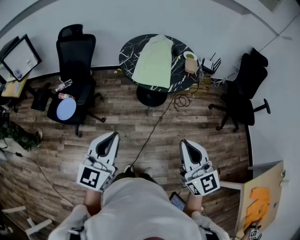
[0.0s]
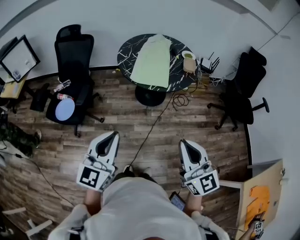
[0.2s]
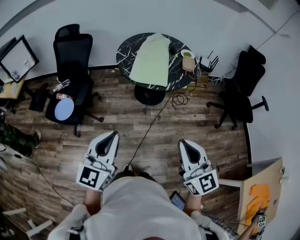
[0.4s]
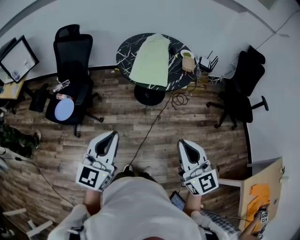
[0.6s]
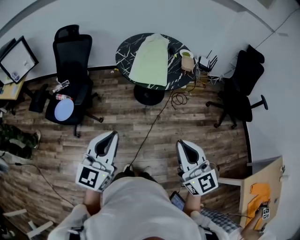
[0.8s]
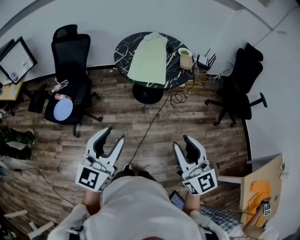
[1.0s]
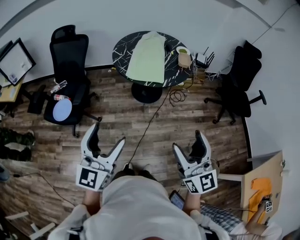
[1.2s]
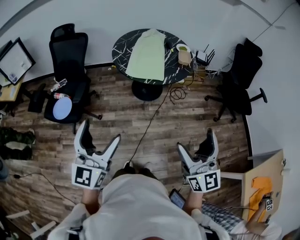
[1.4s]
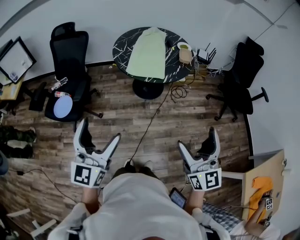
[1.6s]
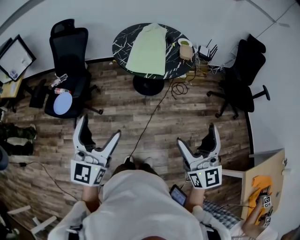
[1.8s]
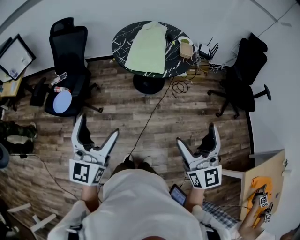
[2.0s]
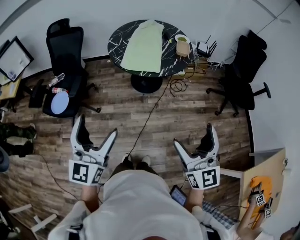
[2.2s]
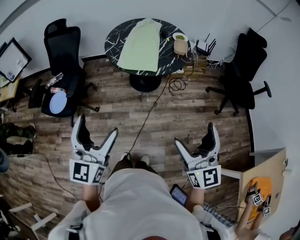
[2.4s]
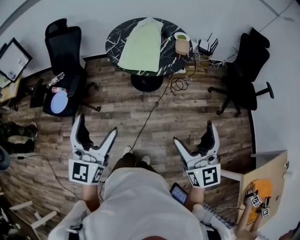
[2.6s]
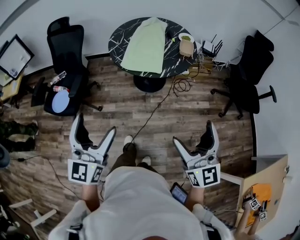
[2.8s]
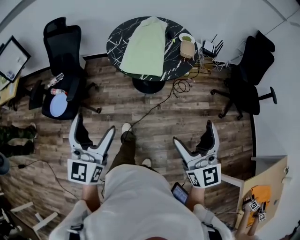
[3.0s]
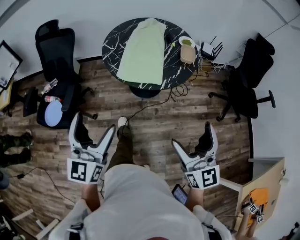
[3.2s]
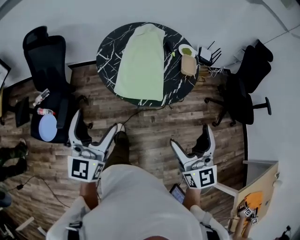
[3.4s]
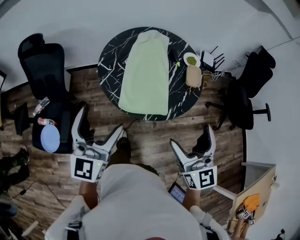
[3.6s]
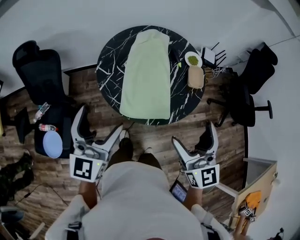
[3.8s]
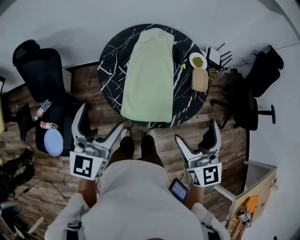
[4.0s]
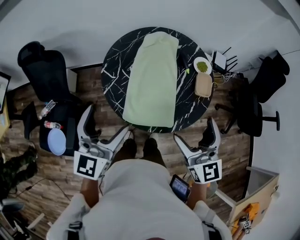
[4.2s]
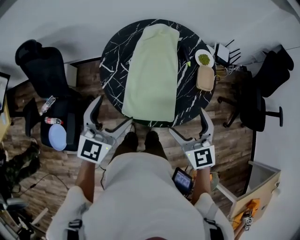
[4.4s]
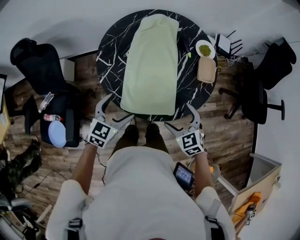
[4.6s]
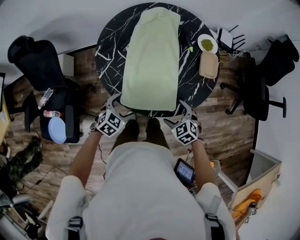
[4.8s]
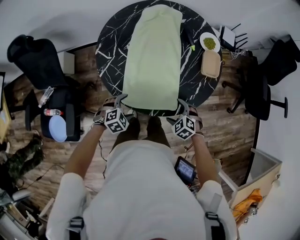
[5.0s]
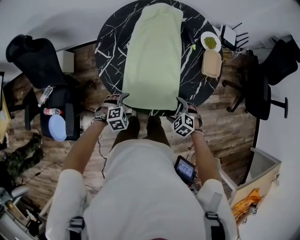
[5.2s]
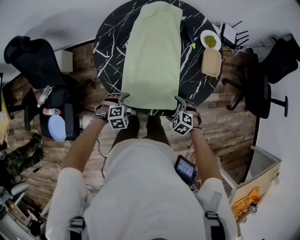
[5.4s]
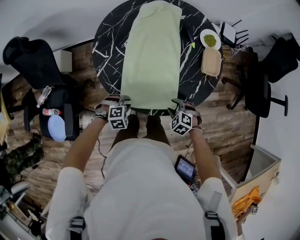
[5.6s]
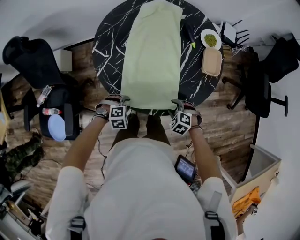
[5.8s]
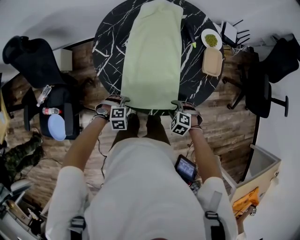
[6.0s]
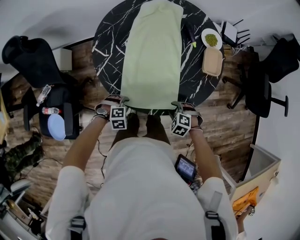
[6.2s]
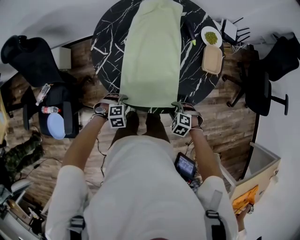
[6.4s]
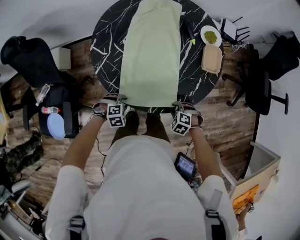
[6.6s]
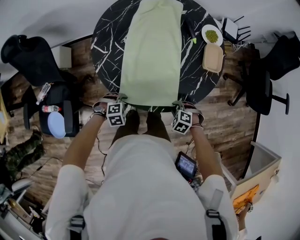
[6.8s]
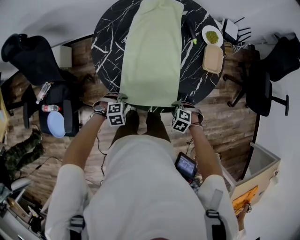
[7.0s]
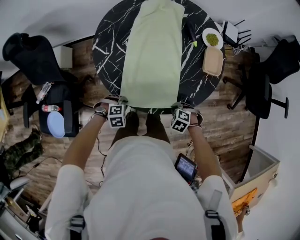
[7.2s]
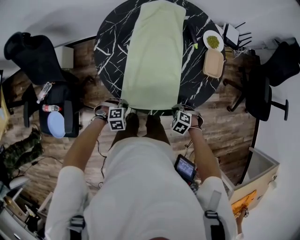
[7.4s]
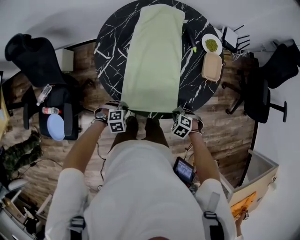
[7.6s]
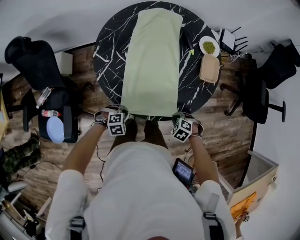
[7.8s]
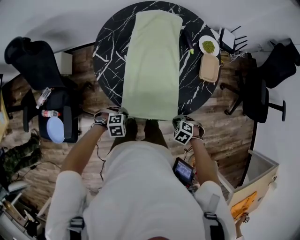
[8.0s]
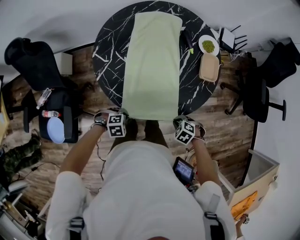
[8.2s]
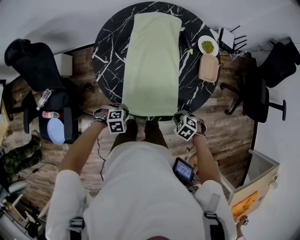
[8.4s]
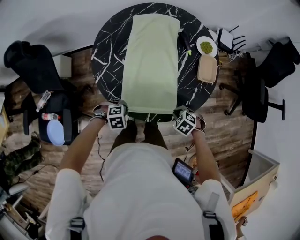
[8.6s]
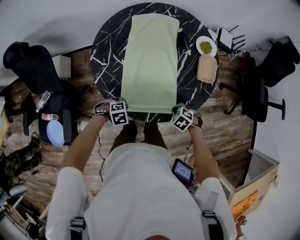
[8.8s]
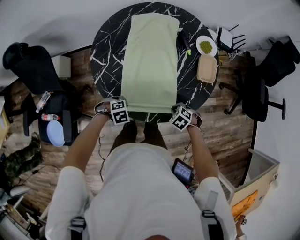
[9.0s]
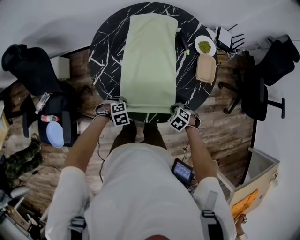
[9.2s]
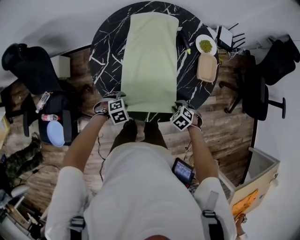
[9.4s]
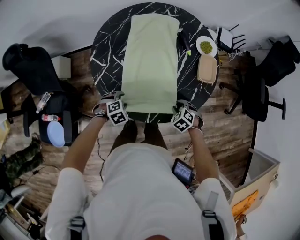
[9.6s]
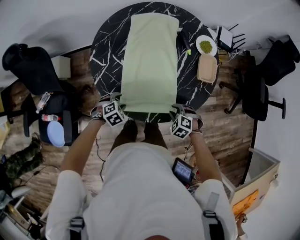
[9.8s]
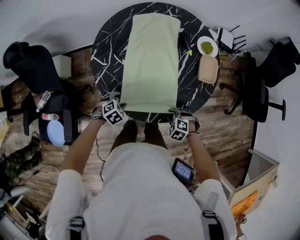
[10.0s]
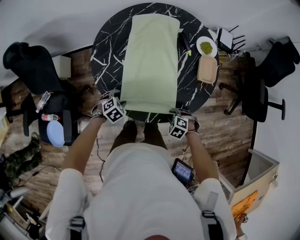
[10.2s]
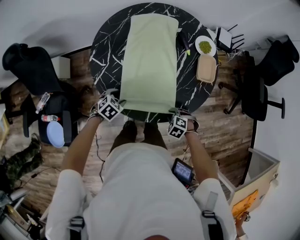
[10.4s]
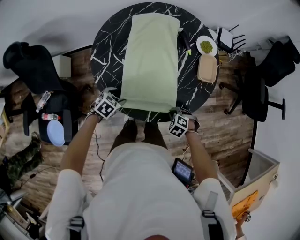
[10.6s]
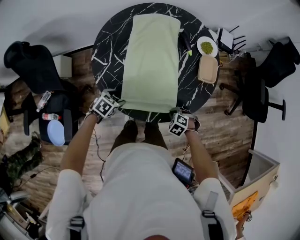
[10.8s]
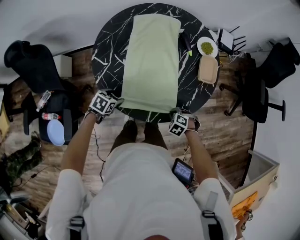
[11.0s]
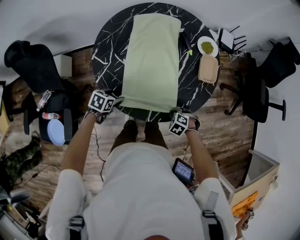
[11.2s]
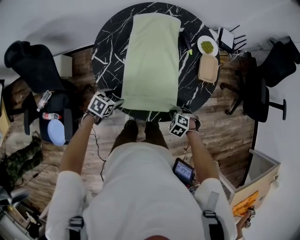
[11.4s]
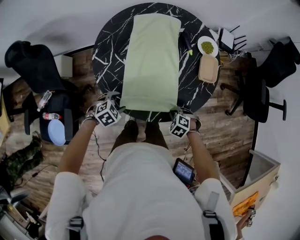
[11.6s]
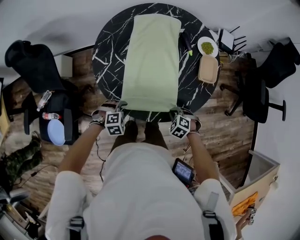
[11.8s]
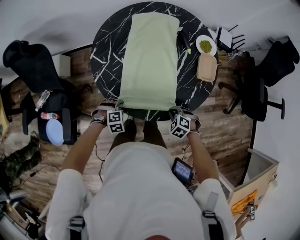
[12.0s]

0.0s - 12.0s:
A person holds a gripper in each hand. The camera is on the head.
0.0s - 1.6s: The right gripper goes some 5 cm to the right, and opens its fingers; the left gripper opens.
1.6s - 3.0s: The right gripper shifts approximately 10 cm forward, while the left gripper goes about 10 cm forward and to the right.
3.0s - 4.4s: The two grippers travel together, forward, approximately 50 cm. The right gripper rotates some 30 degrees. Meanwhile the left gripper turns by approximately 30 degrees.
4.4s - 6.0s: Both grippers move downward, some 35 cm. The left gripper points its fingers roughly 60 degrees further downward, and closes up; the right gripper angles its fingers downward, by some 50 degrees, and closes.
6.0s - 7.6s: The right gripper closes up. Meanwhile the left gripper closes its fingers.
7.6s - 9.0s: The left gripper shifts by roughly 5 cm, while the right gripper changes place by approximately 5 cm.
9.0s - 10.4s: The left gripper ends up about 5 cm from where it was, rotates some 30 degrees, and opens.
10.4s - 12.0s: The left gripper ends up roughly 10 cm from where it was, and turns by roughly 40 degrees.

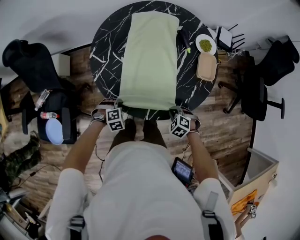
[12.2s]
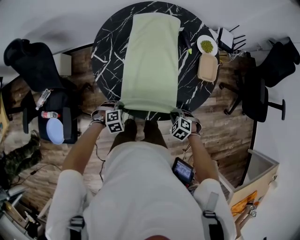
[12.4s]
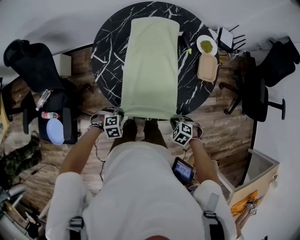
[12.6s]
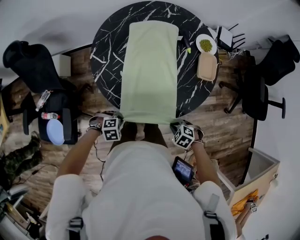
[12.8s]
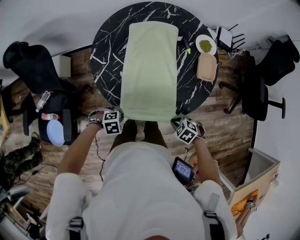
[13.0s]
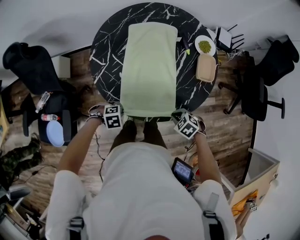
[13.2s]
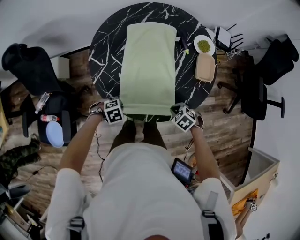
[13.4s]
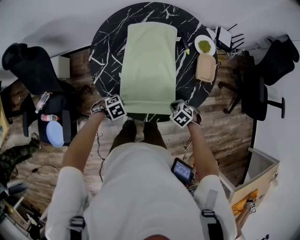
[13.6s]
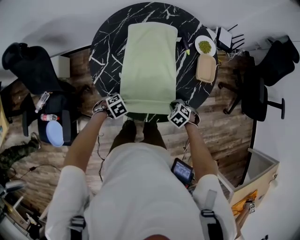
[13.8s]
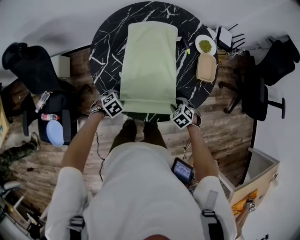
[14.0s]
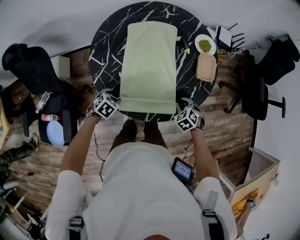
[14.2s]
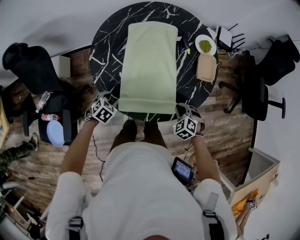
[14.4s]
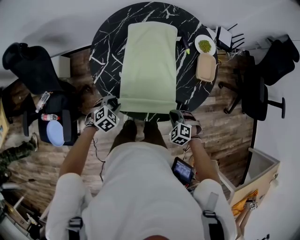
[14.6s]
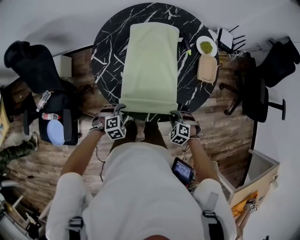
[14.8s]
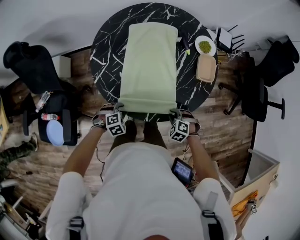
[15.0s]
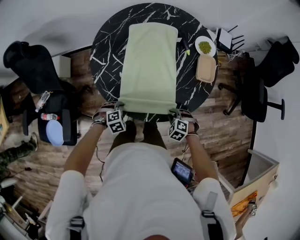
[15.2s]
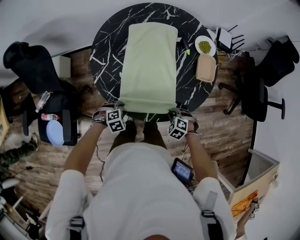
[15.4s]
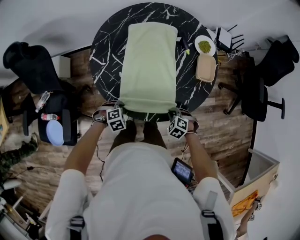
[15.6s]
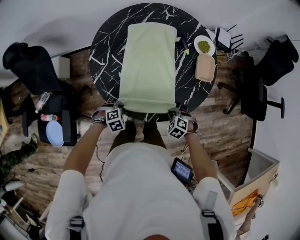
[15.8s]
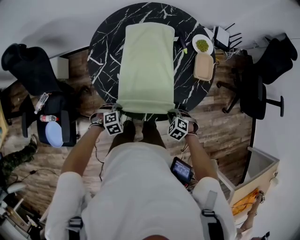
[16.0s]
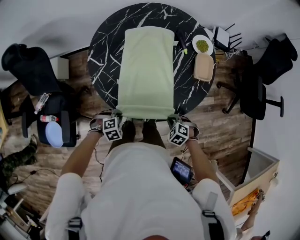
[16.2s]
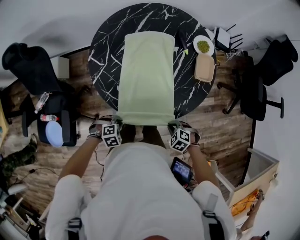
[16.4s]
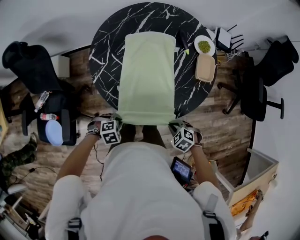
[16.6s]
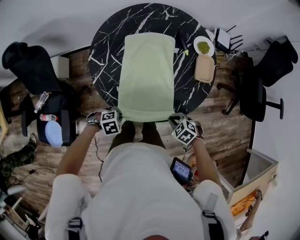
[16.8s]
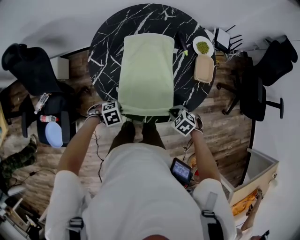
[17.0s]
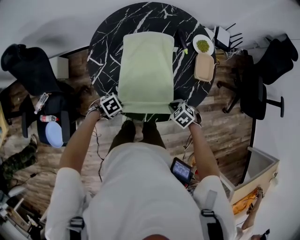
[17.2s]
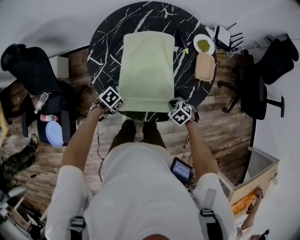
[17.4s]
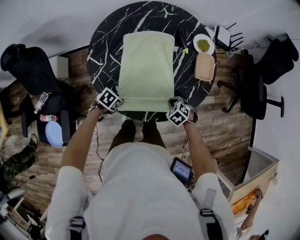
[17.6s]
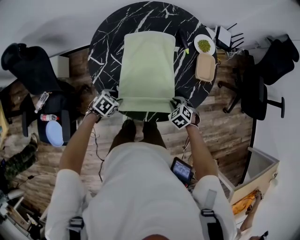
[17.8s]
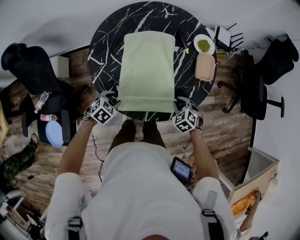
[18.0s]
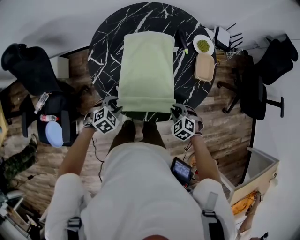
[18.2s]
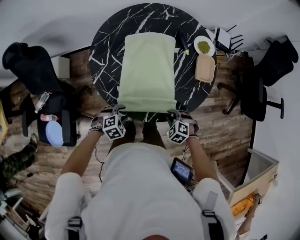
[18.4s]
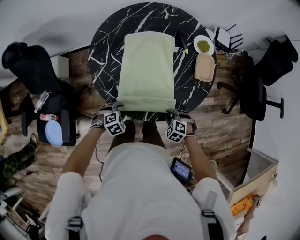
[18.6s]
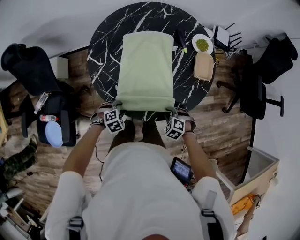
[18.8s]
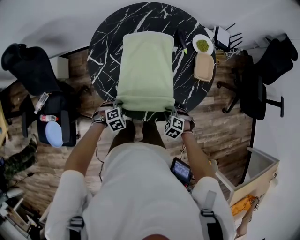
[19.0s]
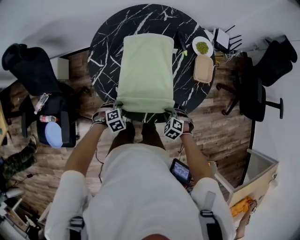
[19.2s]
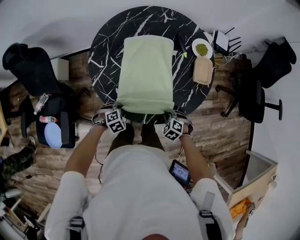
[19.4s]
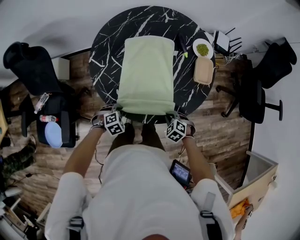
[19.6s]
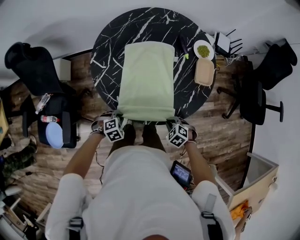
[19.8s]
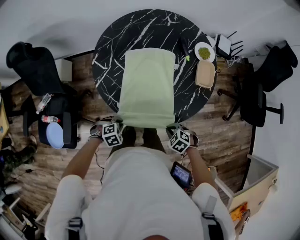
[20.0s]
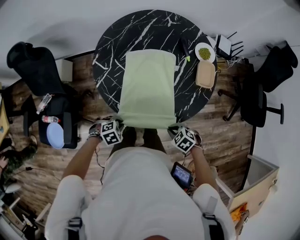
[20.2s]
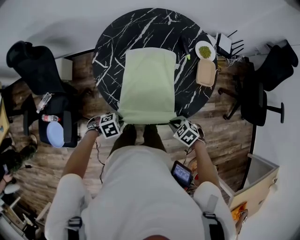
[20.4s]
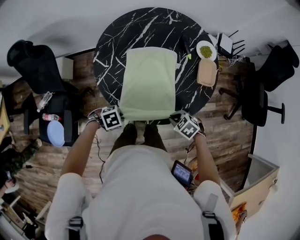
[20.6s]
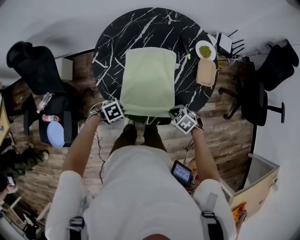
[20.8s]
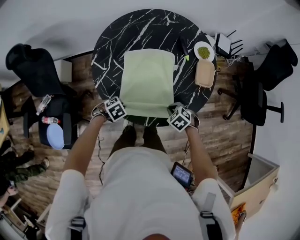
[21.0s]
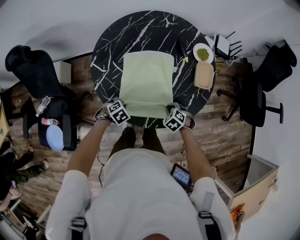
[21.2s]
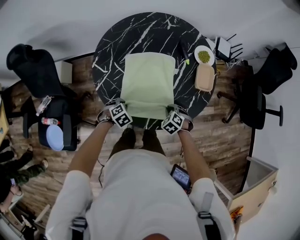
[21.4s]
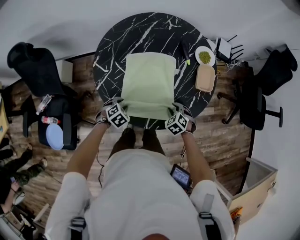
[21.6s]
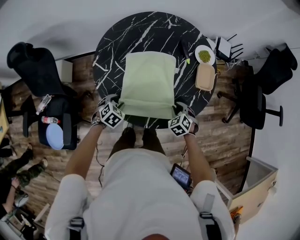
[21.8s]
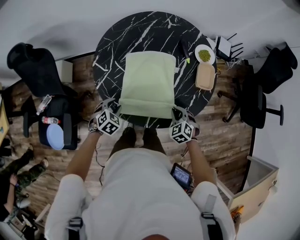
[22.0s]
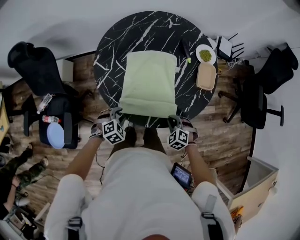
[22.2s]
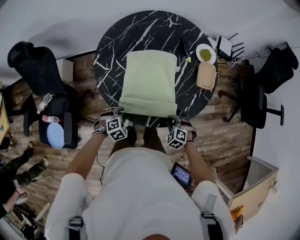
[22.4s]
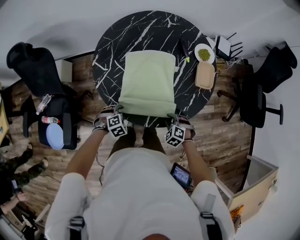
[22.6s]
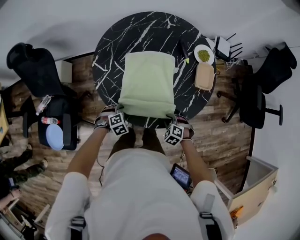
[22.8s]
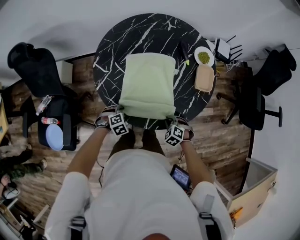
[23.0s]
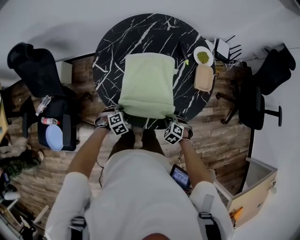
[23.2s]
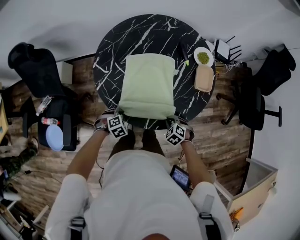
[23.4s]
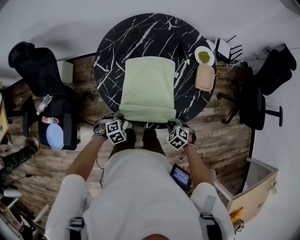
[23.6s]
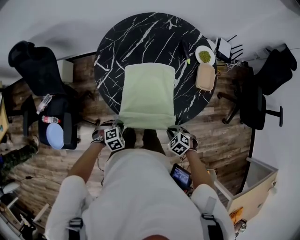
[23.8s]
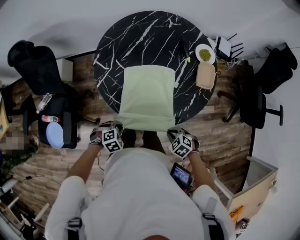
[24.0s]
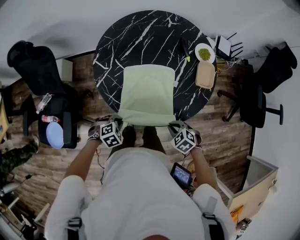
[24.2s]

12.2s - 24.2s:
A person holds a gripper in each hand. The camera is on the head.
12.2s - 13.8s: The left gripper swivels approximately 30 degrees.
13.8s - 15.2s: The right gripper ends up about 5 cm from where it was.
15.2s - 16.6s: The right gripper ends up some 5 cm from where it was. The left gripper ends up about 10 cm from where it was.
16.6s - 18.2s: The left gripper ends up about 10 cm from where it was, and rotates approximately 20 degrees. Meanwhile the right gripper ends up roughly 10 cm from where it was.
18.2s - 19.8s: The left gripper moves some 10 cm. The right gripper changes place by approximately 10 cm.
19.8s - 21.2s: The left gripper ends up roughly 10 cm from where it was. The right gripper changes place by roughly 10 cm.
21.2s - 22.6s: The right gripper moves about 5 cm.
22.6s - 24.2s: Both grippers travel together upward, about 5 cm.
